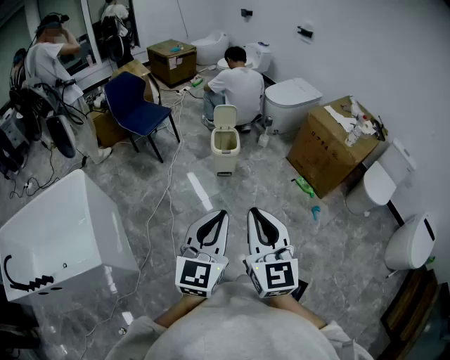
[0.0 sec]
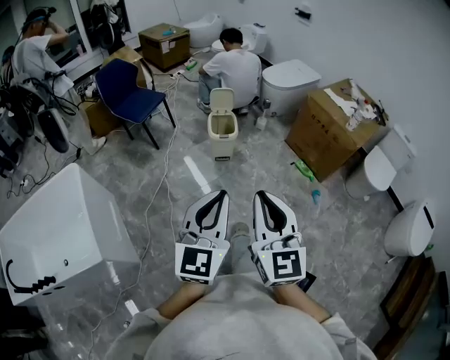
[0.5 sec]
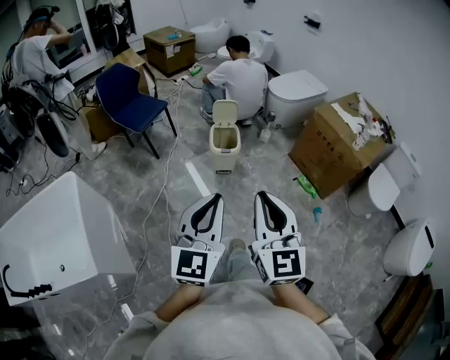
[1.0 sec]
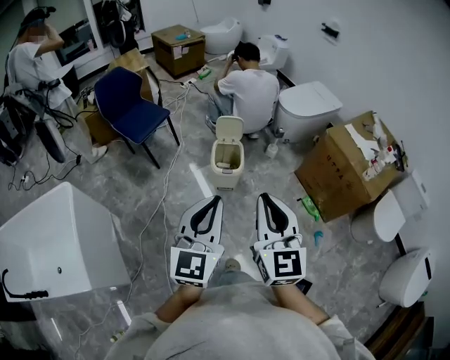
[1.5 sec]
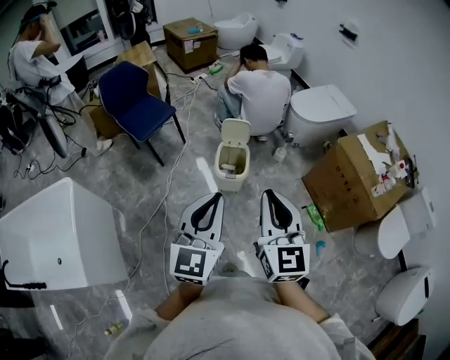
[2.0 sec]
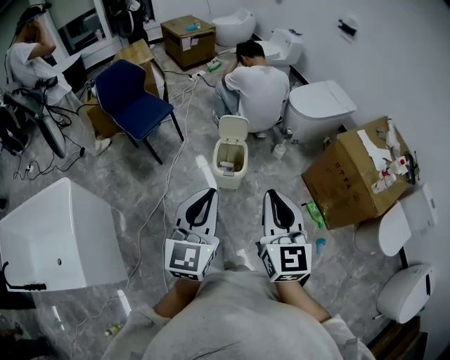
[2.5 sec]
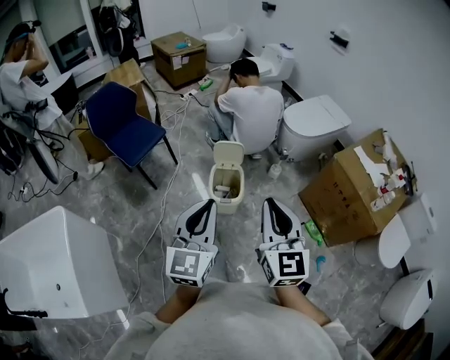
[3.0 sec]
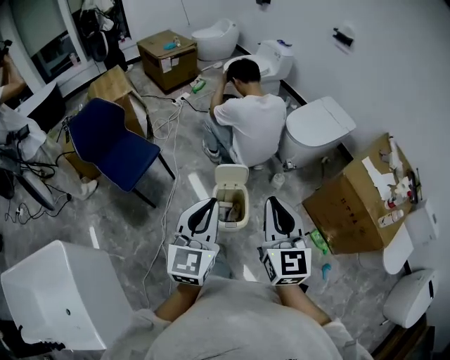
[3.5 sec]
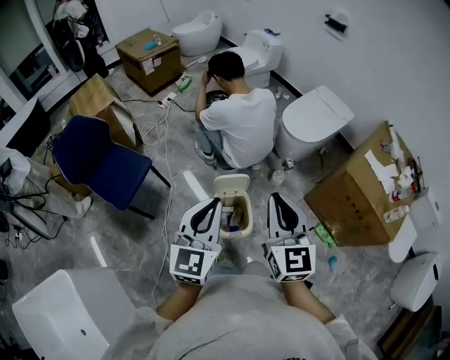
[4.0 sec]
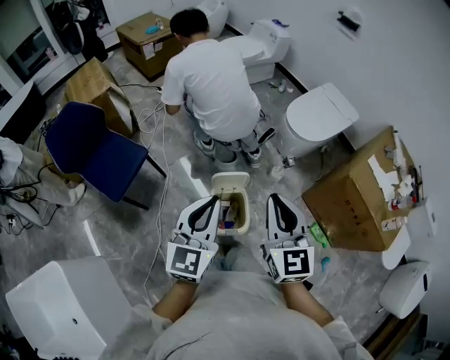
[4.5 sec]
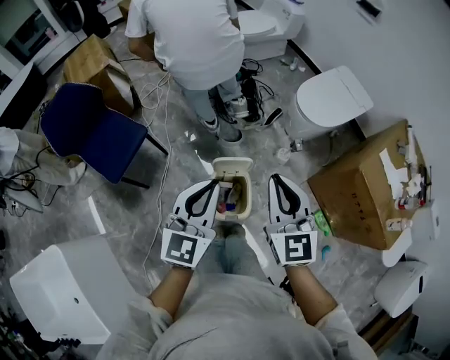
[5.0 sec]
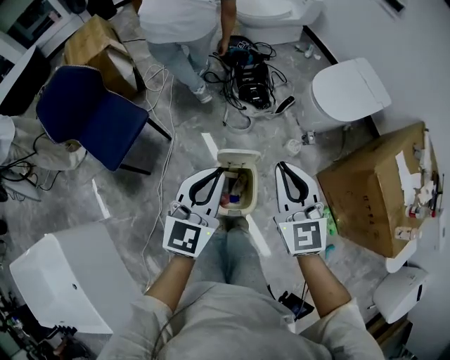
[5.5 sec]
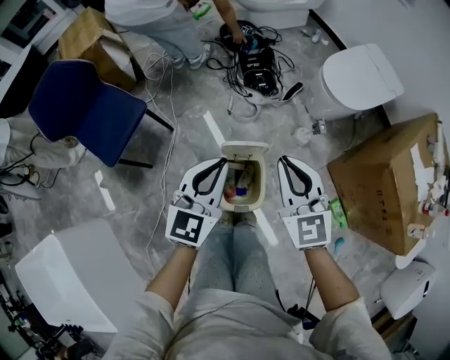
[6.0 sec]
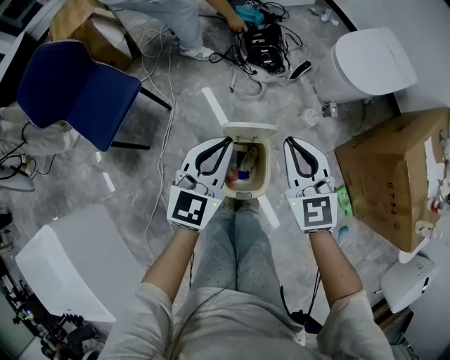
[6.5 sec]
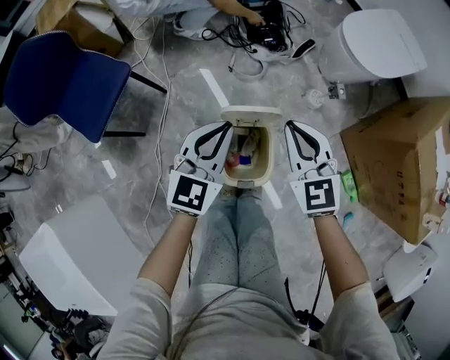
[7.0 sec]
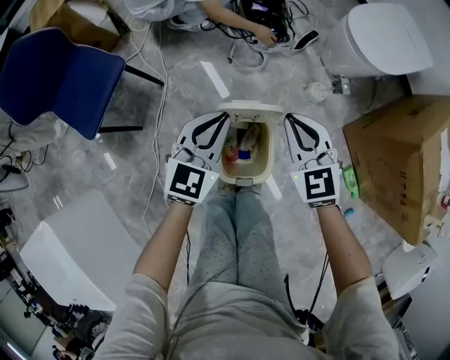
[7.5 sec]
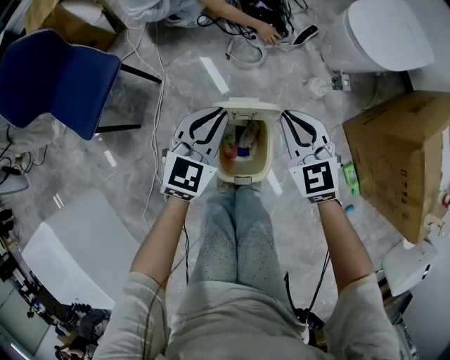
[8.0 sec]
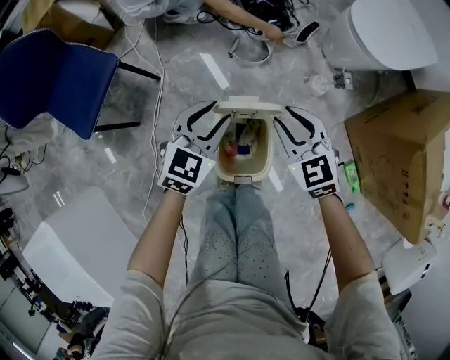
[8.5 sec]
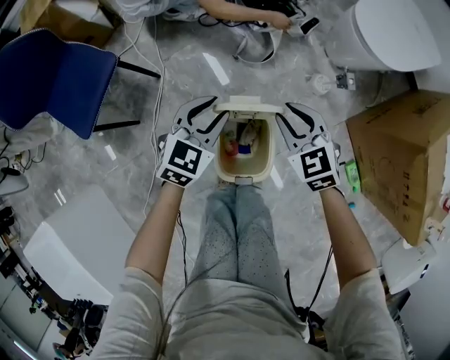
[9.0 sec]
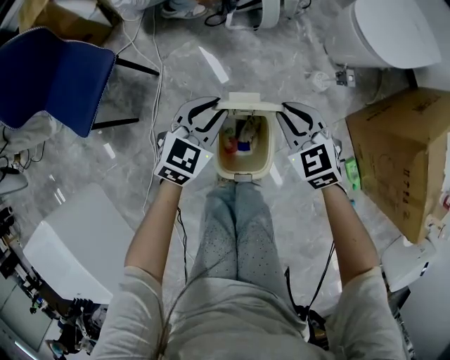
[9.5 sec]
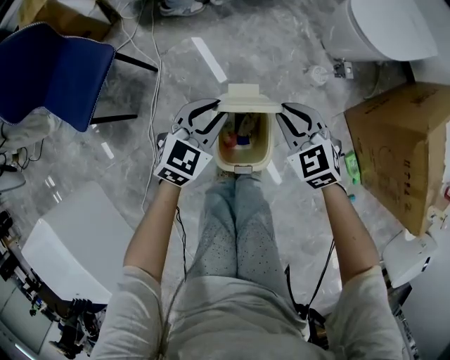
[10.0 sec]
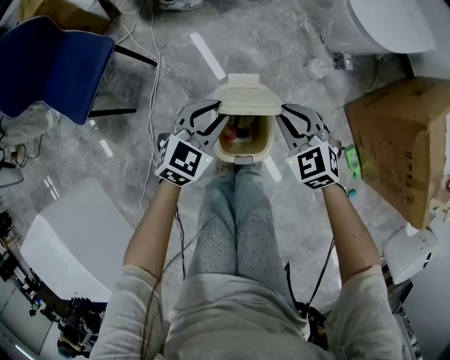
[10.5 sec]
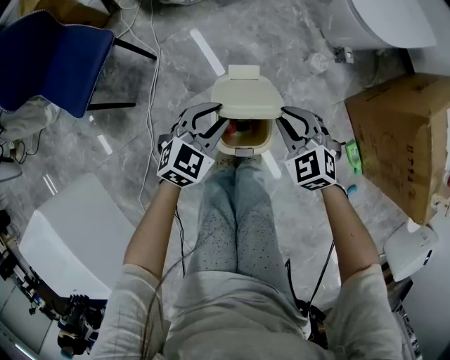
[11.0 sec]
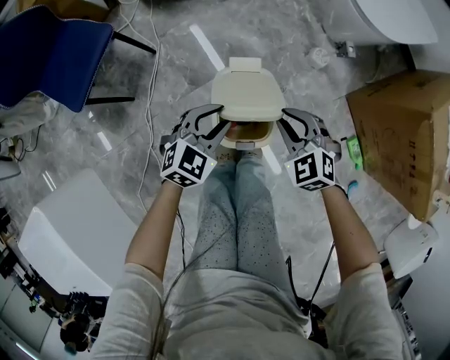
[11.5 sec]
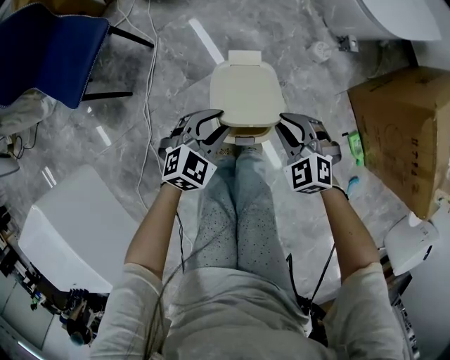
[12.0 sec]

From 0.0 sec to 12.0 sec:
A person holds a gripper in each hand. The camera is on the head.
From 0.0 sec to 2.0 sec: The pair of grippers is taken forward, some 50 cm.
From 2.0 sec to 4.0 sec: Both grippers are carried forward, some 50 cm.
From 4.0 sec to 6.0 sec: Both grippers move downward and forward, about 30 cm. The right gripper rotates roughly 20 degrees.
From 6.0 sec to 8.0 sec: Both grippers move downward, some 25 cm.
From 8.0 sec to 10.0 sec: The grippers both shift downward by about 5 cm.
From 10.0 sec to 12.0 sec: The grippers both shift backward and downward by roughly 15 cm.

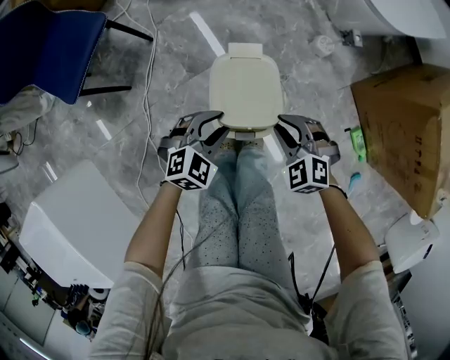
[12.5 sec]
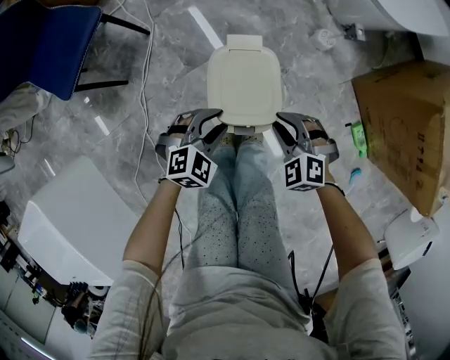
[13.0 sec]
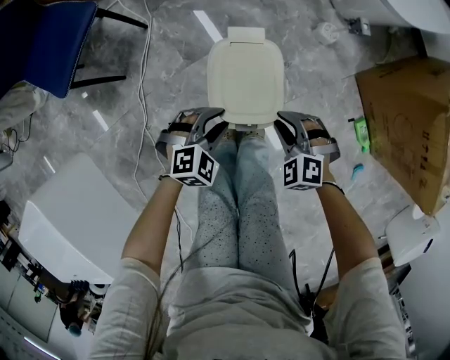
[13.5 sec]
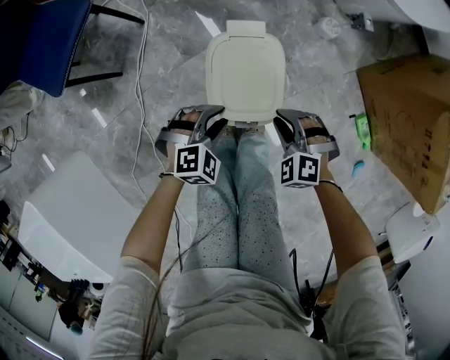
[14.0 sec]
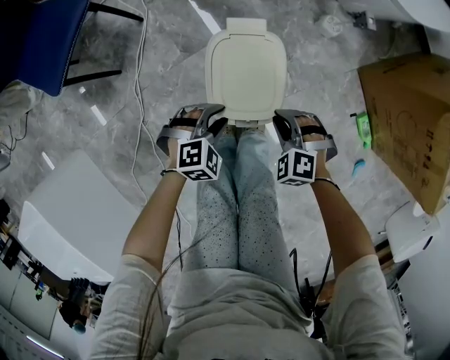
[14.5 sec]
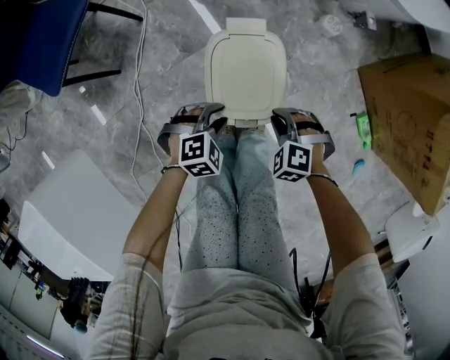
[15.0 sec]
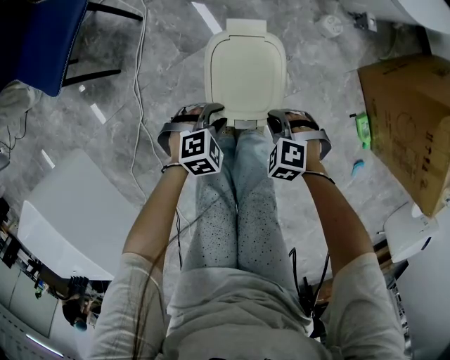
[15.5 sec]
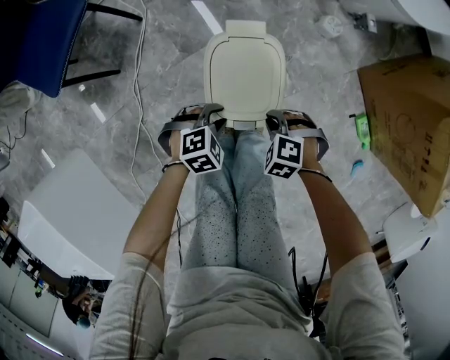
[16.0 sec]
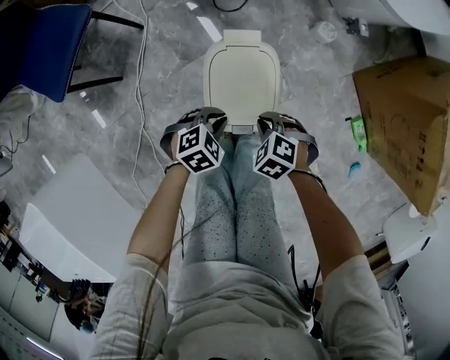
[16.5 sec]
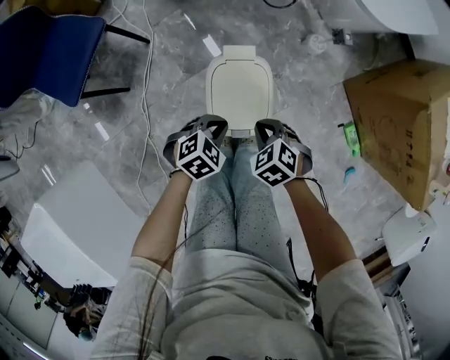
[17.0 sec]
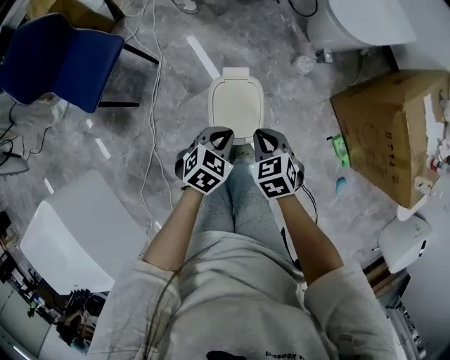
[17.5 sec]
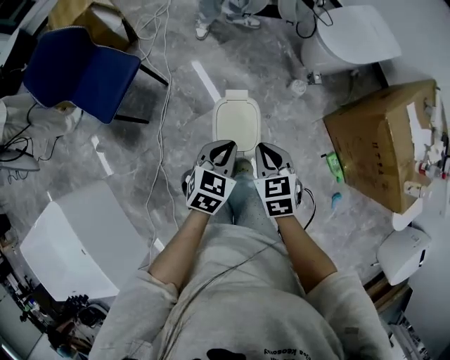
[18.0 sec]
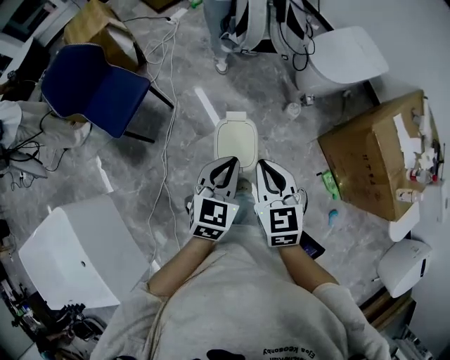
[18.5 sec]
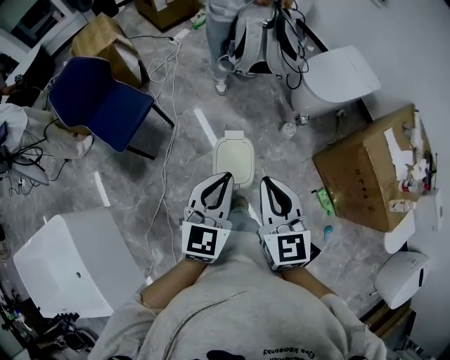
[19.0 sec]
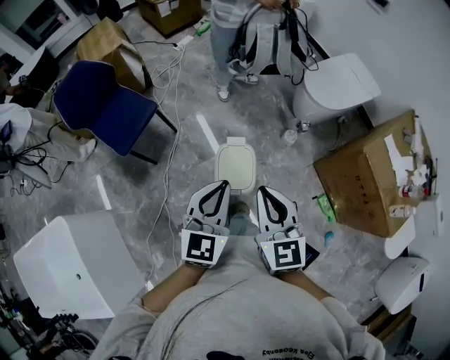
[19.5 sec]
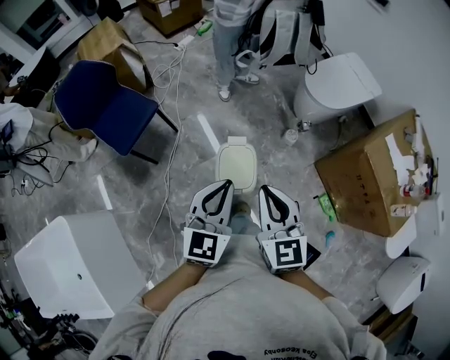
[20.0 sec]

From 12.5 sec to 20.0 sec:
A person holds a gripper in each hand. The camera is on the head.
From 12.5 sec to 14.5 sec: Both grippers travel together downward, about 10 cm.
From 14.5 sec to 16.5 sec: The right gripper changes its angle by some 20 degrees. The left gripper closes up.
From 16.5 sec to 18.0 sec: Both grippers travel together upward, approximately 40 cm. The right gripper rotates approximately 50 degrees. The left gripper turns by roughly 40 degrees.
From 18.0 sec to 20.0 sec: Both grippers move upward, some 25 cm. The right gripper swivels approximately 30 degrees; the left gripper turns by approximately 30 degrees.

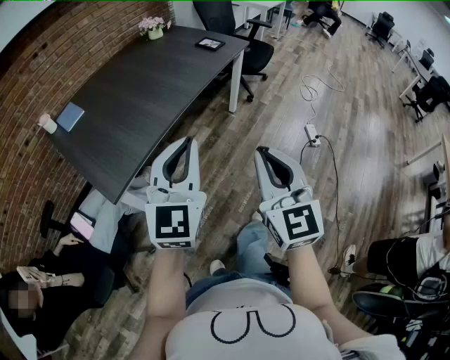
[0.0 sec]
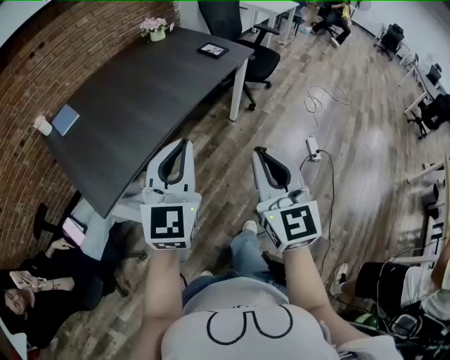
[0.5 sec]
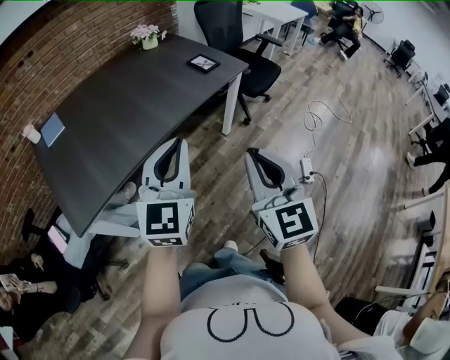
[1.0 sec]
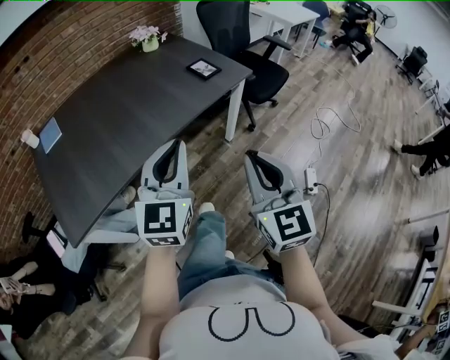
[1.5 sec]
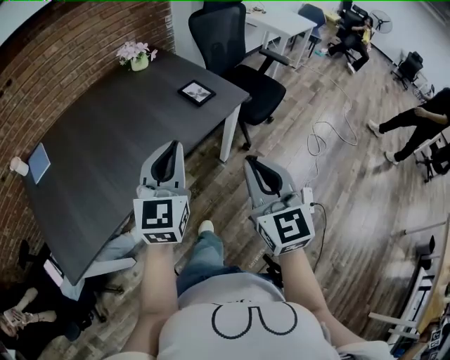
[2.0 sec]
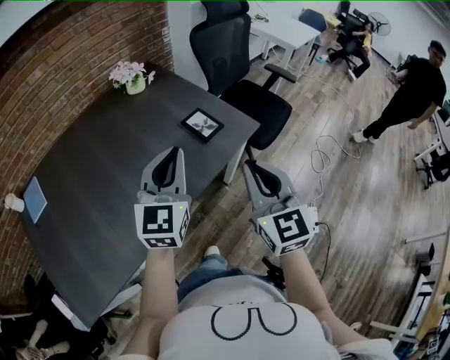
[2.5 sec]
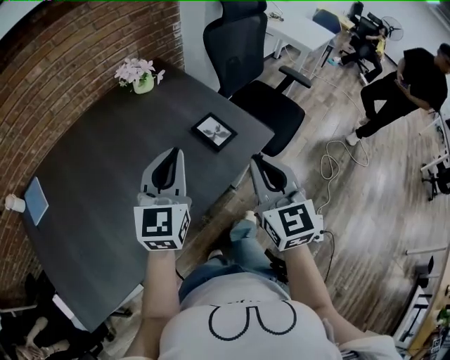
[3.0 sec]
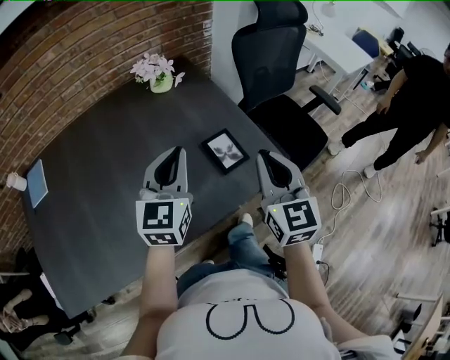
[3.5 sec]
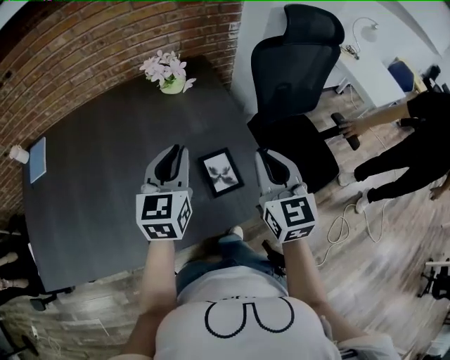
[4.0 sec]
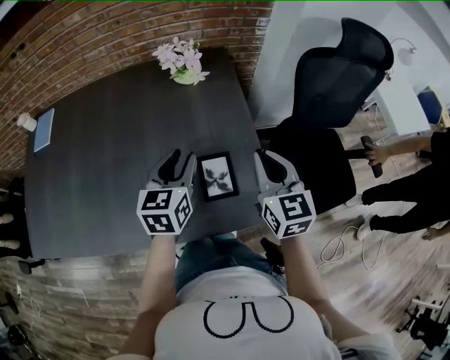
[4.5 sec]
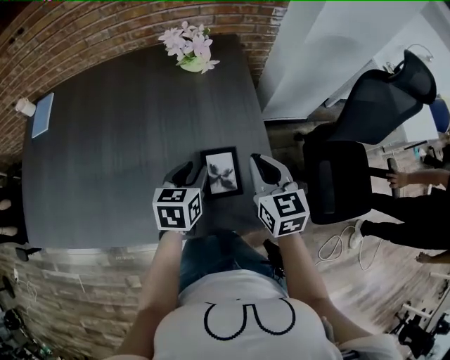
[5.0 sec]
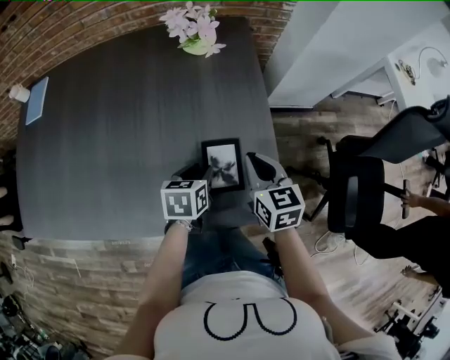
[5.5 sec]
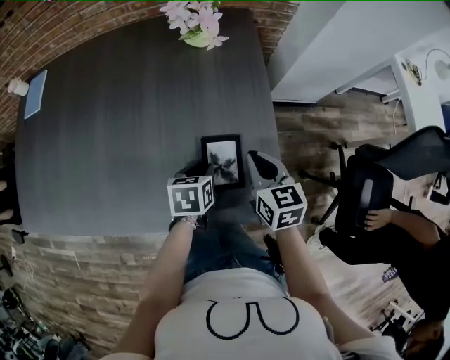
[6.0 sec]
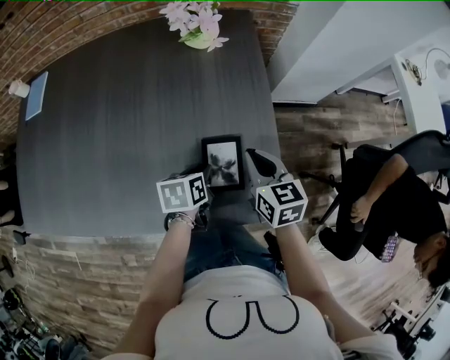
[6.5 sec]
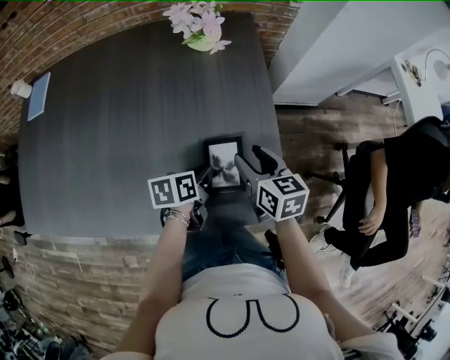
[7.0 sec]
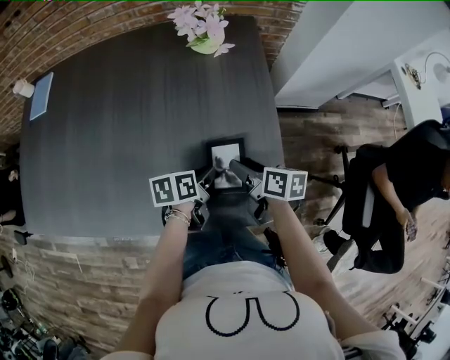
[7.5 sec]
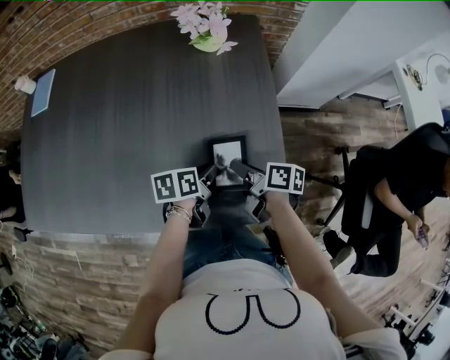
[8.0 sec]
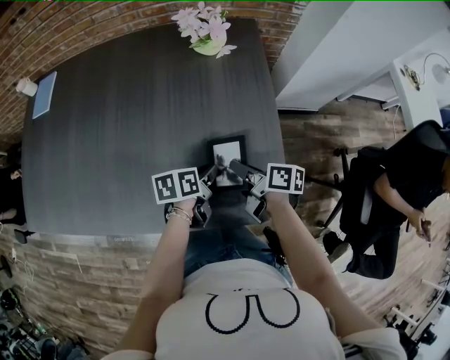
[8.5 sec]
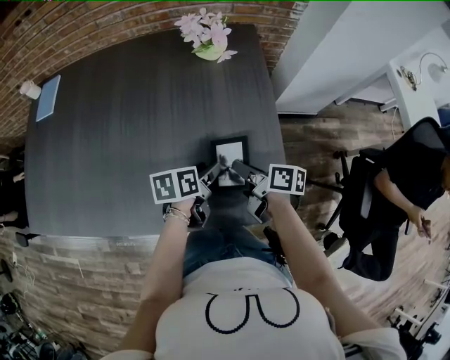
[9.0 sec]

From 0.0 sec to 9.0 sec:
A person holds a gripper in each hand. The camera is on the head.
From 0.0 sec to 2.0 sec: The pair of grippers is taken forward and to the right, approximately 50 cm.
From 2.0 sec to 4.5 sec: The two grippers travel together, roughly 50 cm. The left gripper changes its angle by roughly 40 degrees, and opens; the right gripper rotates approximately 30 degrees.
From 4.5 sec to 7.0 sec: The two grippers go approximately 15 cm downward. The right gripper changes its angle by about 30 degrees, and opens. Meanwhile the left gripper changes its angle by about 50 degrees.
From 7.0 sec to 9.0 sec: The right gripper changes place by some 5 cm, rotates about 40 degrees, and closes, while the left gripper opens.
